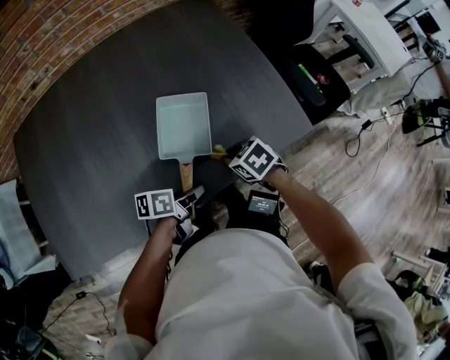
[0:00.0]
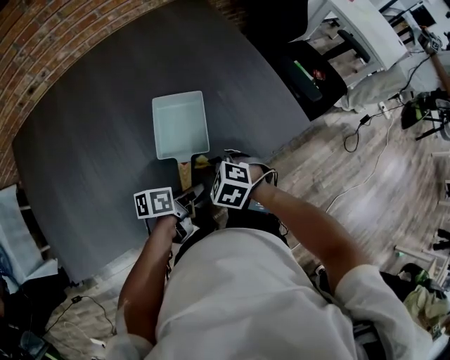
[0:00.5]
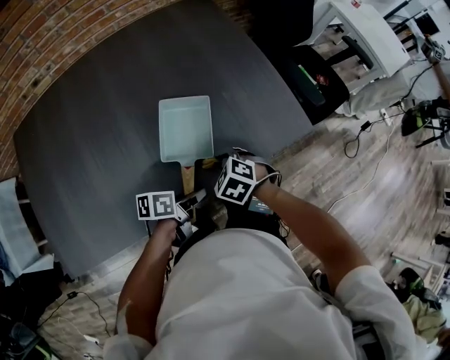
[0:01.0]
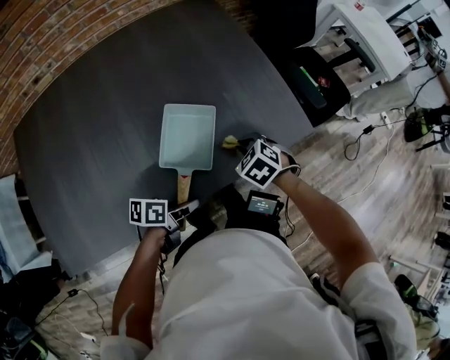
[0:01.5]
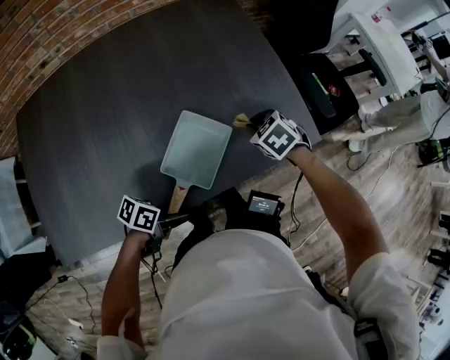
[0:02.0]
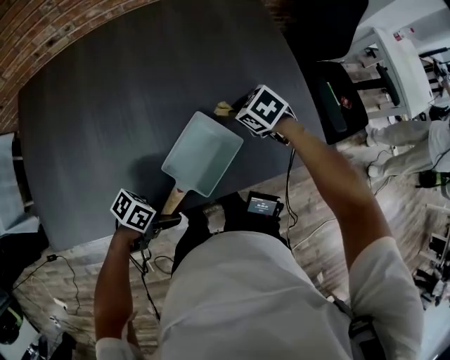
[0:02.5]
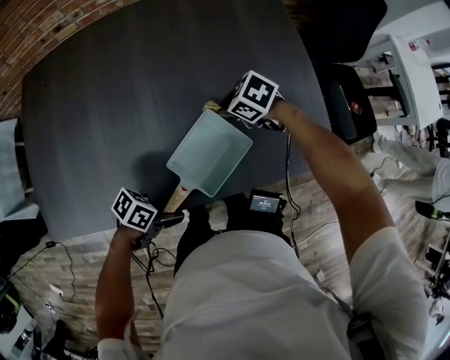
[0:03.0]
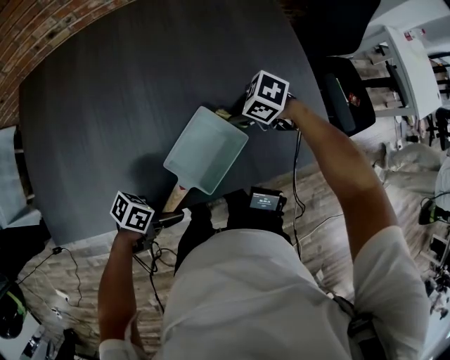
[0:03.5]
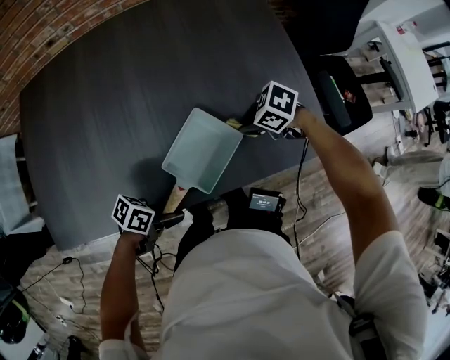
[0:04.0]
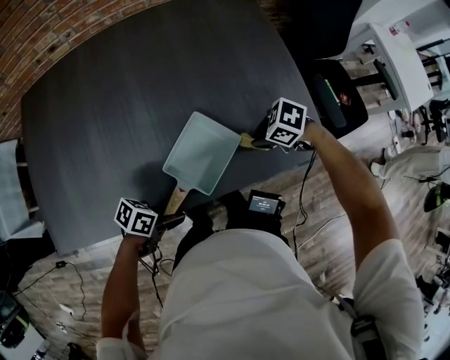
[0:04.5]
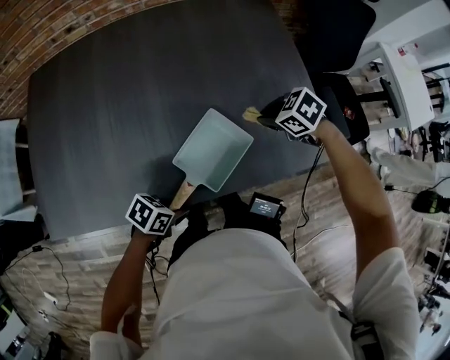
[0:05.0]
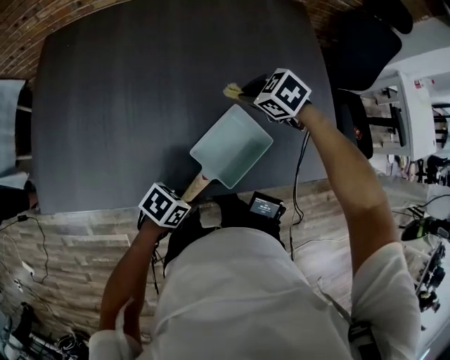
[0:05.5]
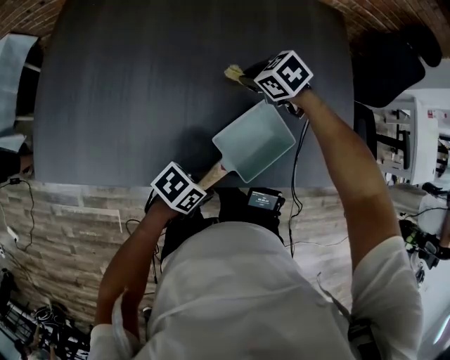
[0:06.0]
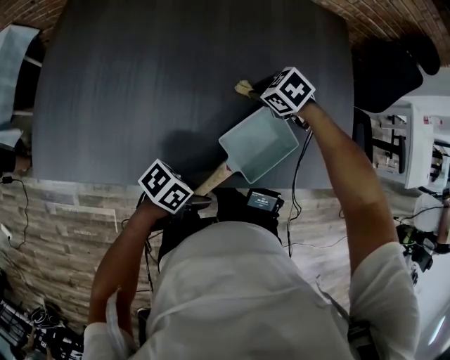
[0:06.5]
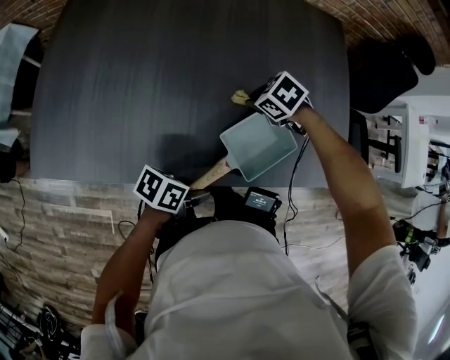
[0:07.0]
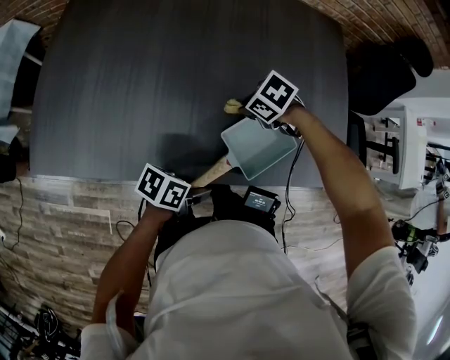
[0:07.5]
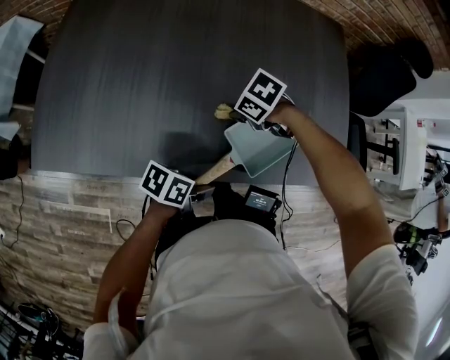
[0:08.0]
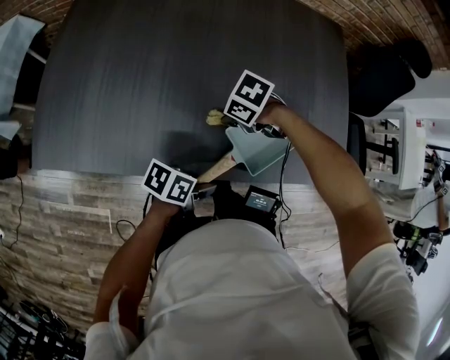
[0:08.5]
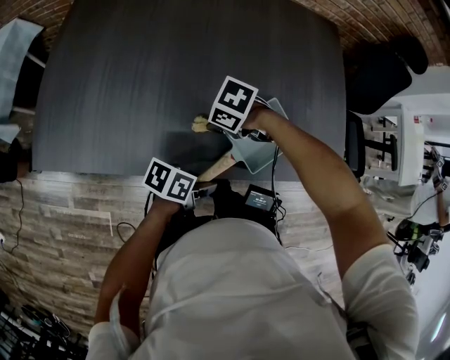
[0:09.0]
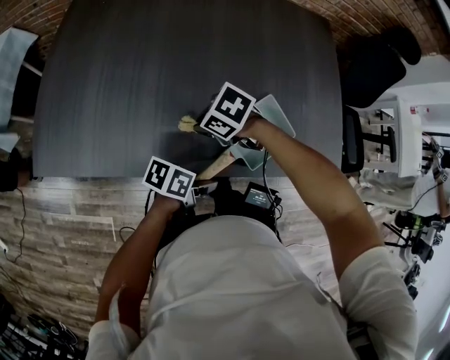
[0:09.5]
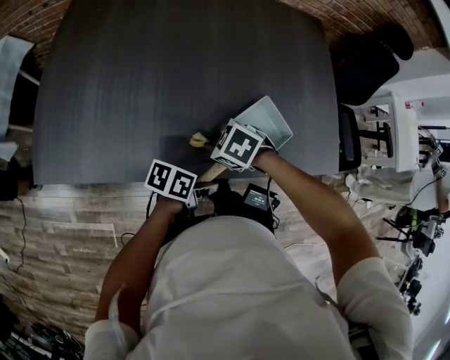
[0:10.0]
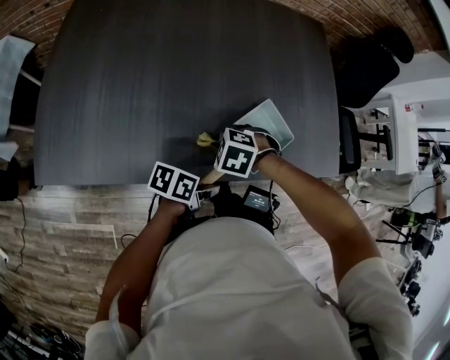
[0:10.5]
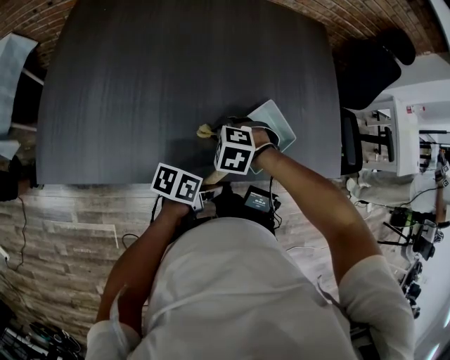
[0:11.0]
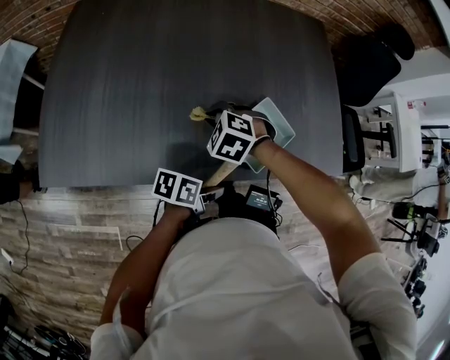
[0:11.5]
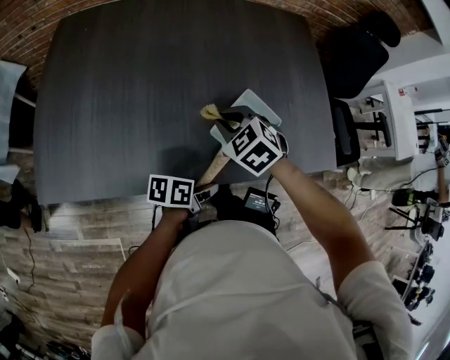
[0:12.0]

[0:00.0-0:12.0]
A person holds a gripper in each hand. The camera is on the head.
0:00.0 to 0:02.0: The right gripper moves roughly 10 cm, and changes its angle by about 20 degrees.
0:02.0 to 0:04.0: The right gripper changes its angle by approximately 40 degrees.
0:04.0 to 0:06.0: The right gripper ends up some 20 cm from where it was.
0:06.0 to 0:08.0: The right gripper shifts by roughly 10 cm, and swivels roughly 20 degrees.
0:08.0 to 0:10.0: The right gripper moves some 10 cm.
0:10.0 to 0:12.0: The right gripper changes place by about 10 cm, and rotates approximately 30 degrees.

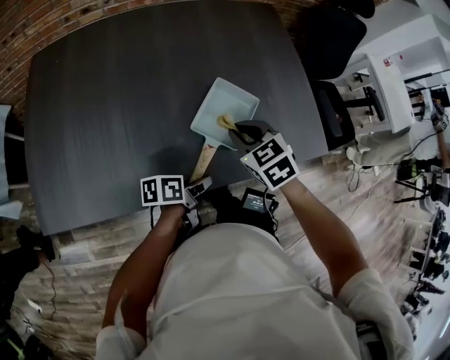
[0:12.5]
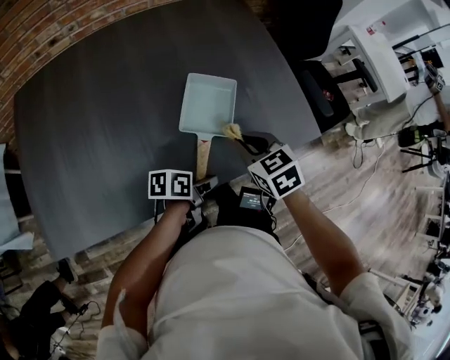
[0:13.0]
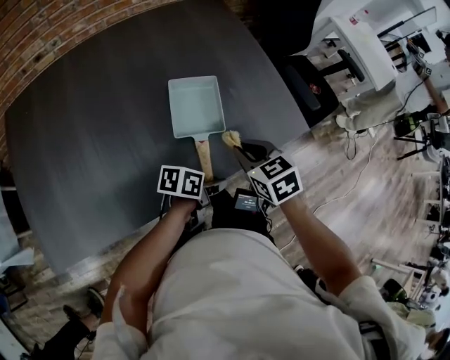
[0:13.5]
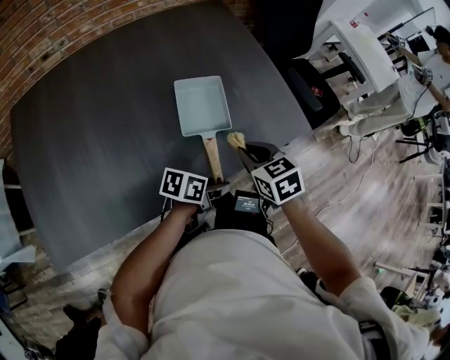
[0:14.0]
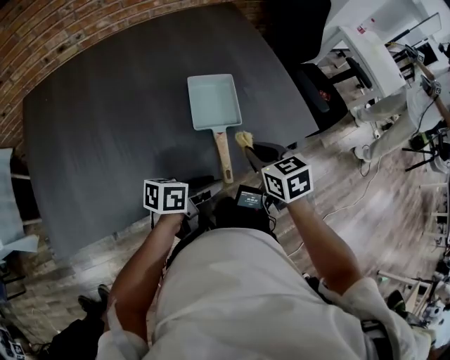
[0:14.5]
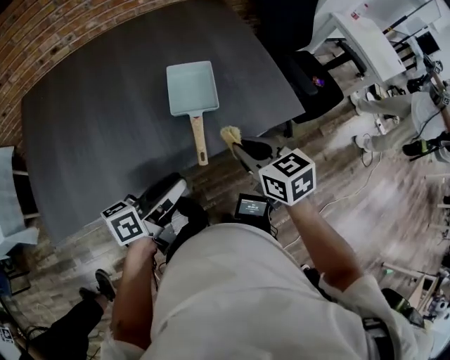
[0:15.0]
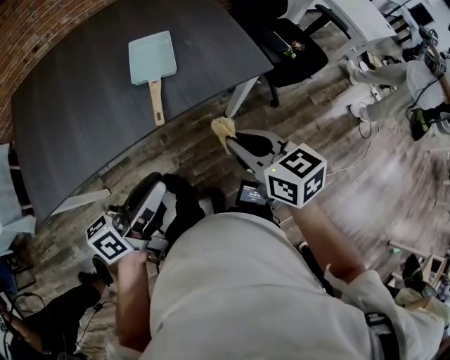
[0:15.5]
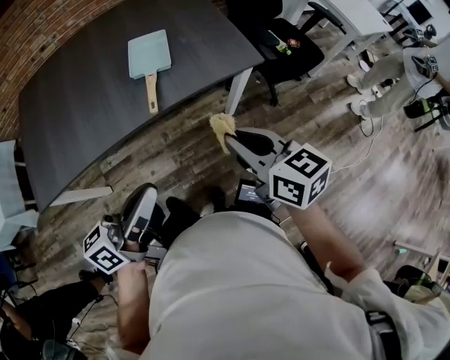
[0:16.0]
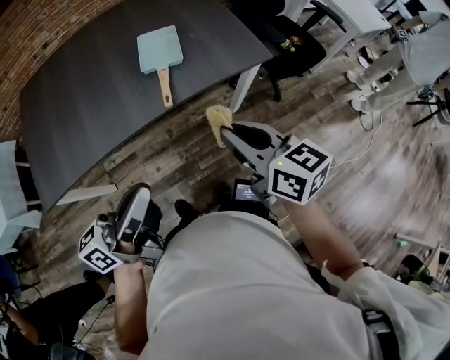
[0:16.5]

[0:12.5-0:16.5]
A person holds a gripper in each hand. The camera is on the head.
0:12.5 to 0:14.5: The right gripper moves approximately 10 cm, and swivels approximately 30 degrees.
0:14.5 to 0:16.5: The right gripper moves roughly 30 cm, and changes its angle by some 30 degrees.

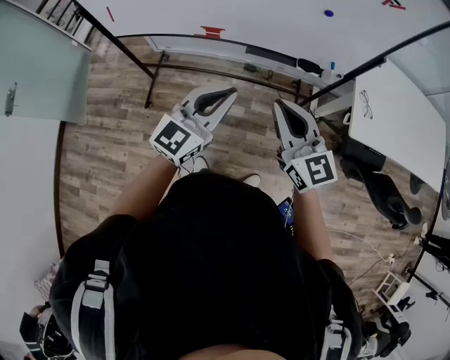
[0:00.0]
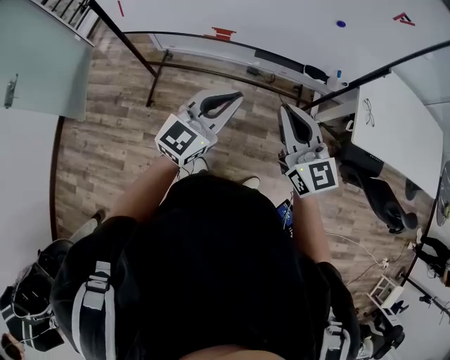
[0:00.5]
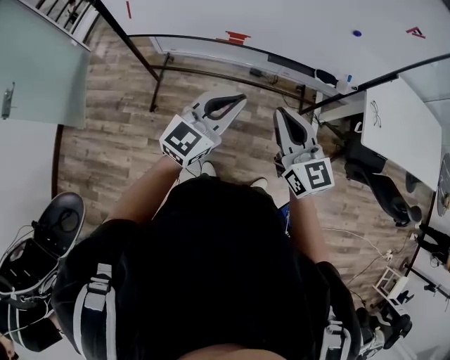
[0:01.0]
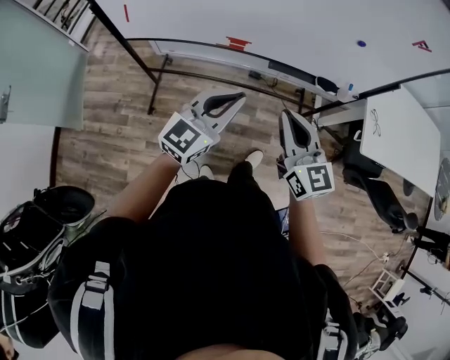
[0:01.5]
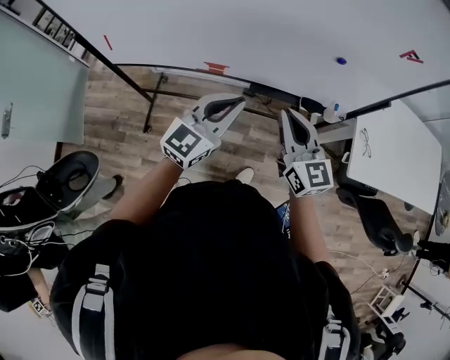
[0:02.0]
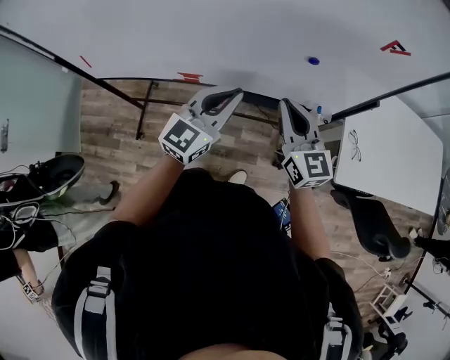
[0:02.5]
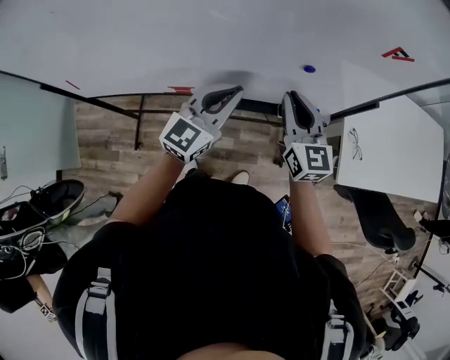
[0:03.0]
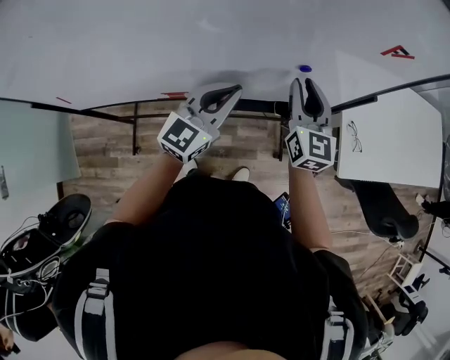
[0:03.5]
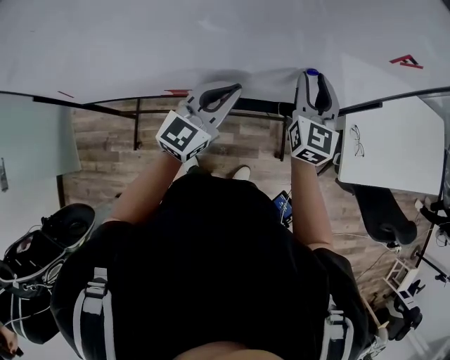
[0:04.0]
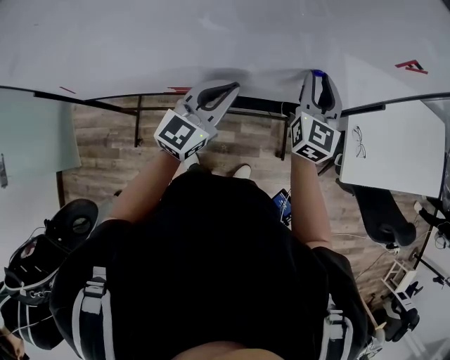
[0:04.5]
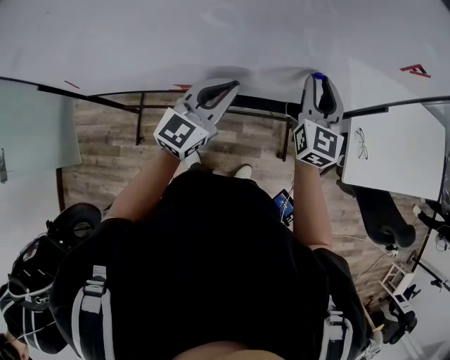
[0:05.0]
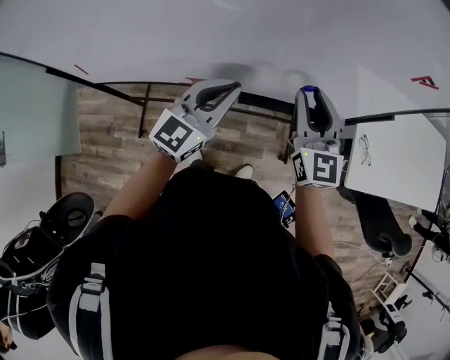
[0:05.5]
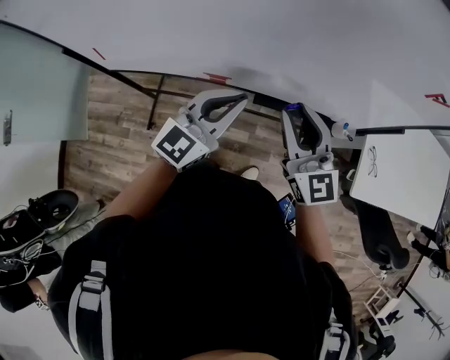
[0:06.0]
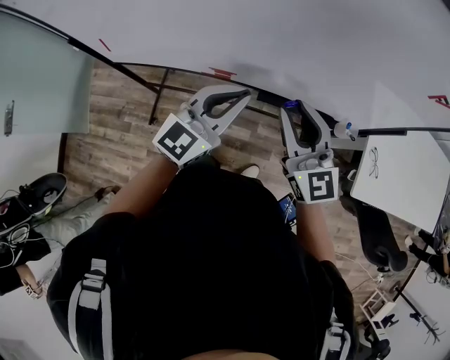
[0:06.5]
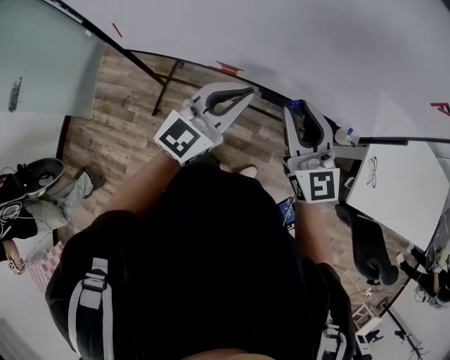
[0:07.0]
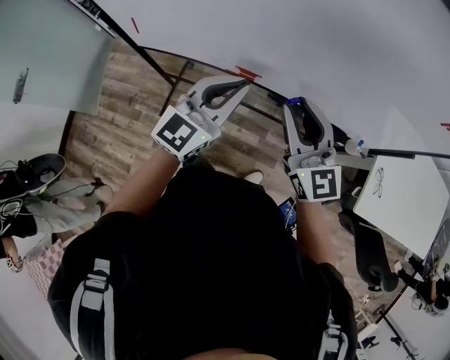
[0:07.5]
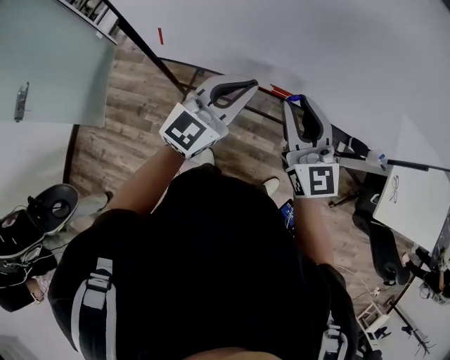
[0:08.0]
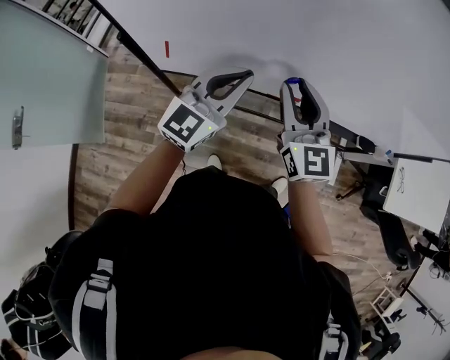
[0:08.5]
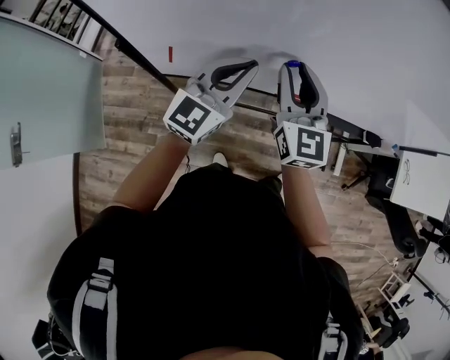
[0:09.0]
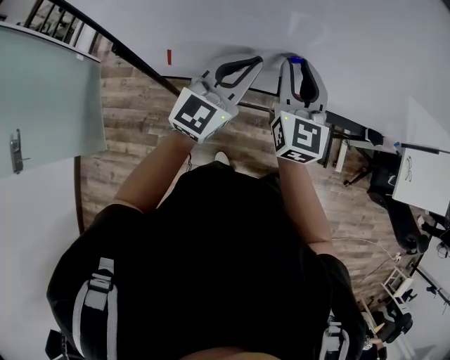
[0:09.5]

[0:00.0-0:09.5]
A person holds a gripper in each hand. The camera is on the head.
0:00.0 to 0:02.0: Both grippers move forward, about 15 cm.
0:02.0 to 0:04.0: The left gripper goes some 20 cm forward, while the right gripper heads forward and to the right, covering some 25 cm, rotates some 30 degrees, and opens up.
0:04.0 to 0:05.5: The right gripper is displaced backward and to the left by some 10 cm. The left gripper is displaced to the left and backward by some 10 cm.
0:05.5 to 0:07.5: Both grippers travel together to the left and backward, some 15 cm. The right gripper rotates about 30 degrees.
0:07.5 to 0:09.5: Both grippers travel together to the left and forward, some 30 cm. The right gripper turns by about 30 degrees.

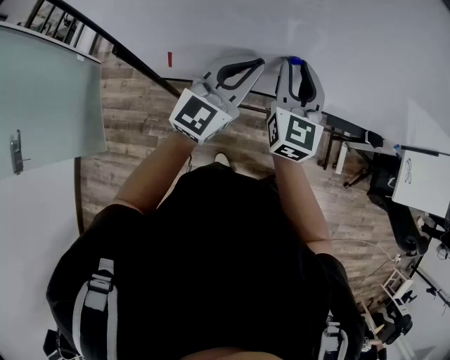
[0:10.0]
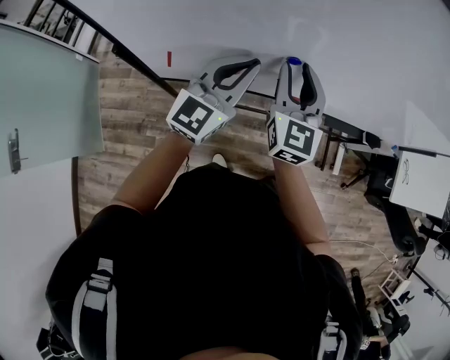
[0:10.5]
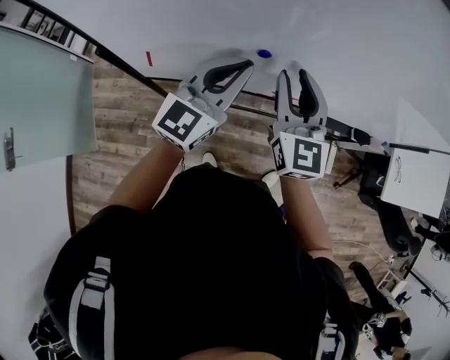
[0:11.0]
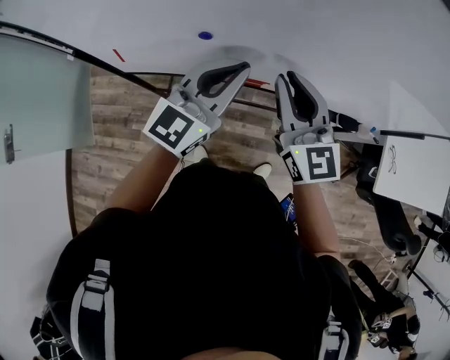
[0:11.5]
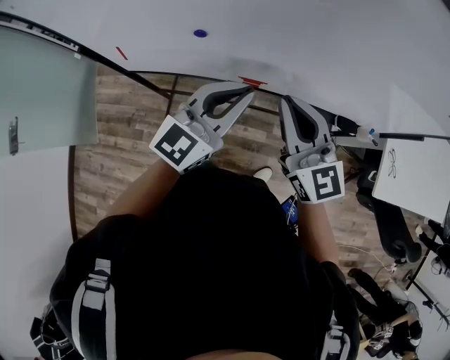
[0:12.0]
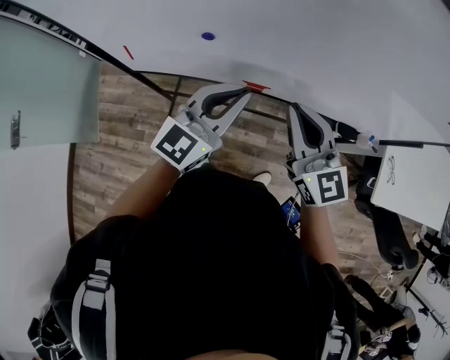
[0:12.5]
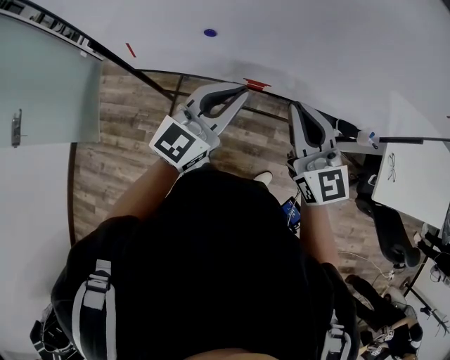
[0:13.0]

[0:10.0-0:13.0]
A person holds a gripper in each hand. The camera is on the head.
0:10.0 to 0:11.5: The two grippers go some 20 cm to the right. The right gripper changes its angle by some 30 degrees.
0:11.5 to 0:13.0: The grippers both shift backward by some 5 cm.
